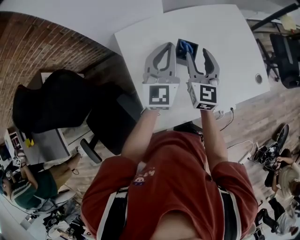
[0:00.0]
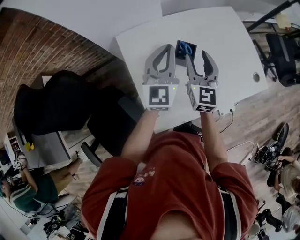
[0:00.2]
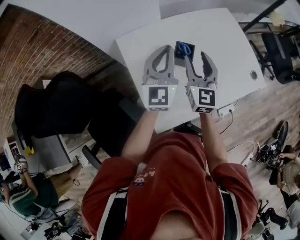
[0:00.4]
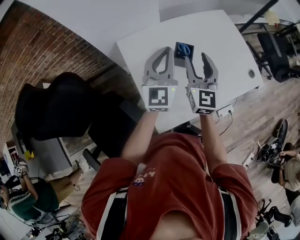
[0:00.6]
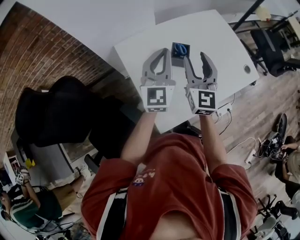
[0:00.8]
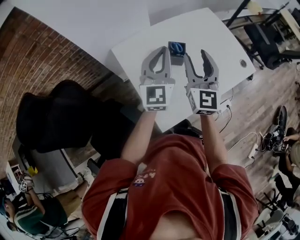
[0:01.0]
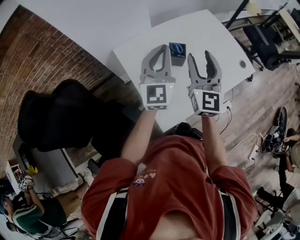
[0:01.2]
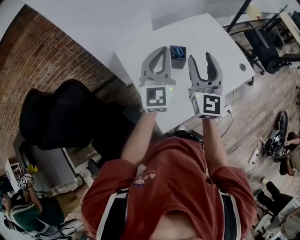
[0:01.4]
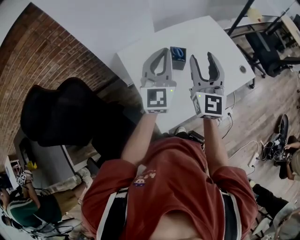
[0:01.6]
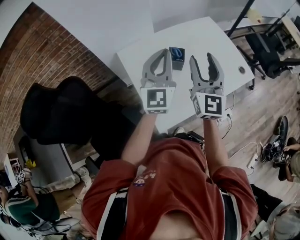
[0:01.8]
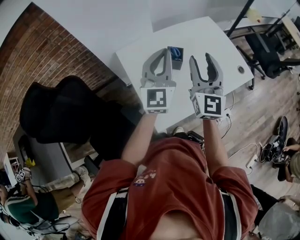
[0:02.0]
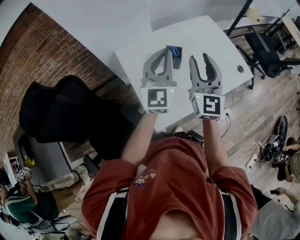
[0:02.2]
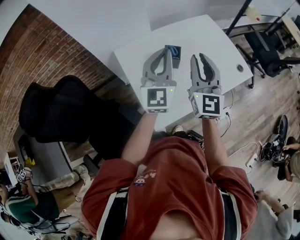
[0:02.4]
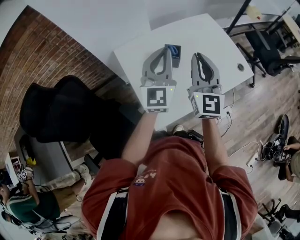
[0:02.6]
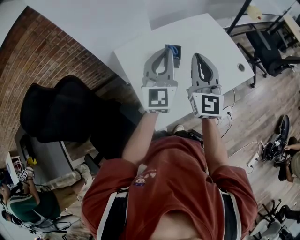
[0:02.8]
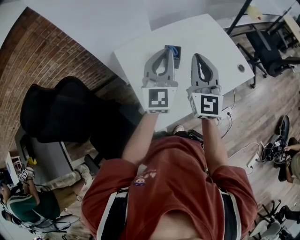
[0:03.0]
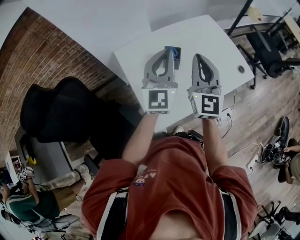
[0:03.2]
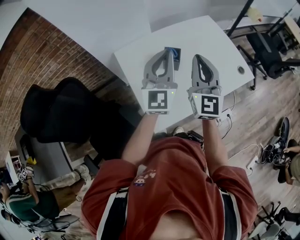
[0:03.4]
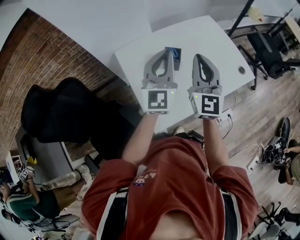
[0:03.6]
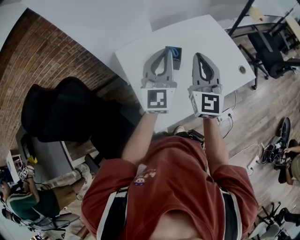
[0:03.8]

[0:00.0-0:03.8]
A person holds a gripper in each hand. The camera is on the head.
0.0 to 1.2 s: The right gripper travels upward and backward by approximately 15 cm, while the left gripper heads upward and backward, covering roughly 10 cm.
1.2 to 2.6 s: The right gripper closes its fingers. The left gripper shifts by roughly 5 cm.
2.6 to 3.8 s: There are only small adjustments of the grippers.

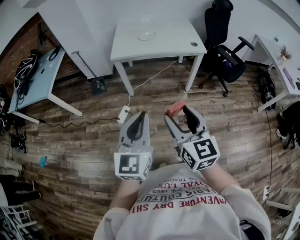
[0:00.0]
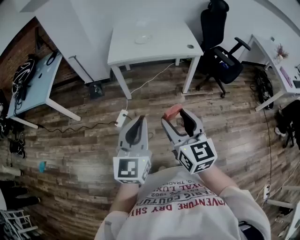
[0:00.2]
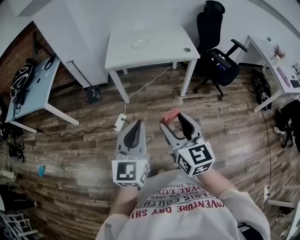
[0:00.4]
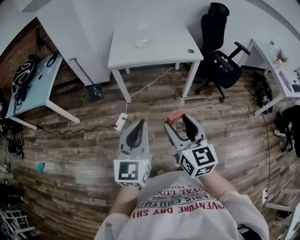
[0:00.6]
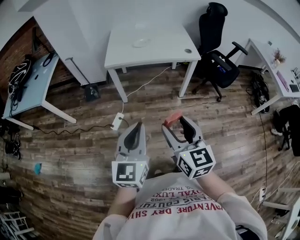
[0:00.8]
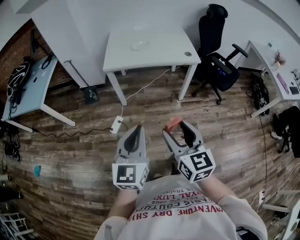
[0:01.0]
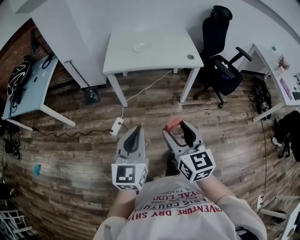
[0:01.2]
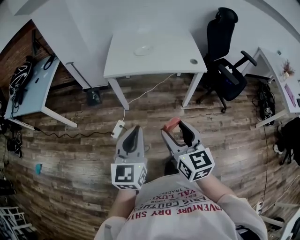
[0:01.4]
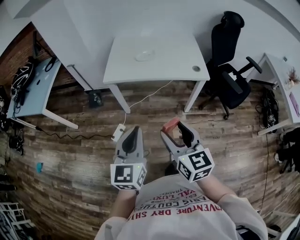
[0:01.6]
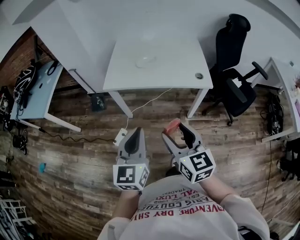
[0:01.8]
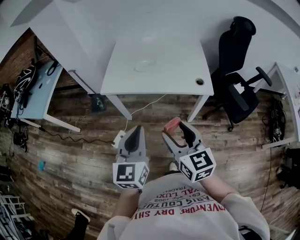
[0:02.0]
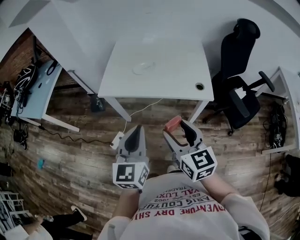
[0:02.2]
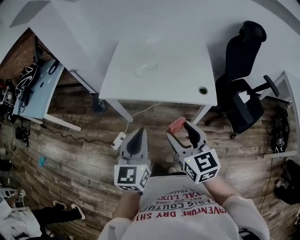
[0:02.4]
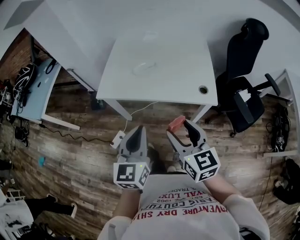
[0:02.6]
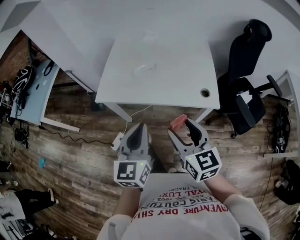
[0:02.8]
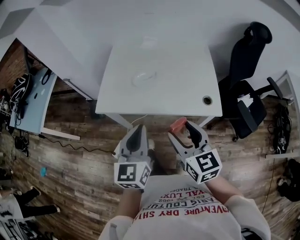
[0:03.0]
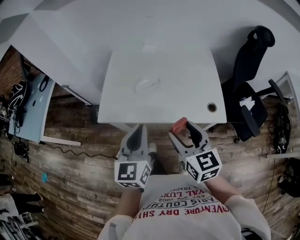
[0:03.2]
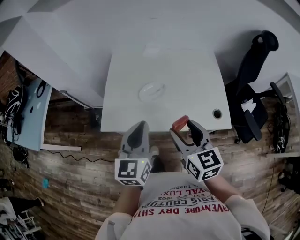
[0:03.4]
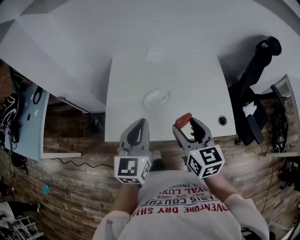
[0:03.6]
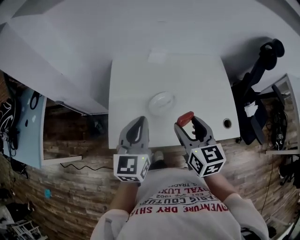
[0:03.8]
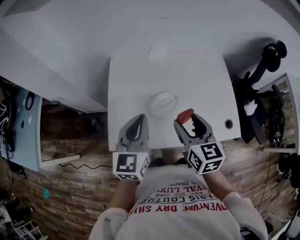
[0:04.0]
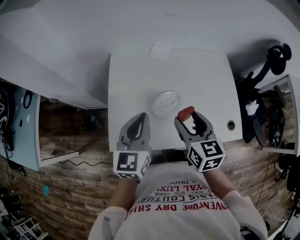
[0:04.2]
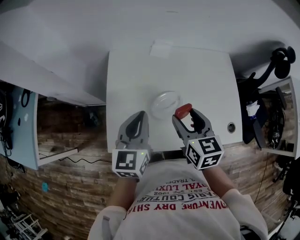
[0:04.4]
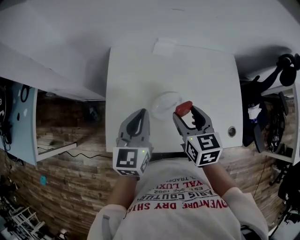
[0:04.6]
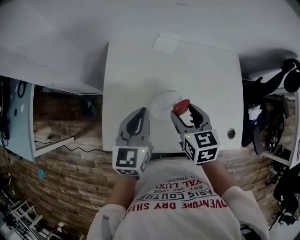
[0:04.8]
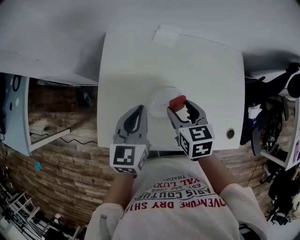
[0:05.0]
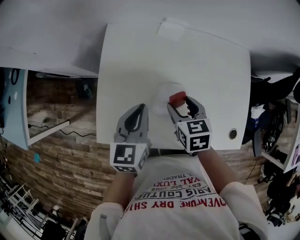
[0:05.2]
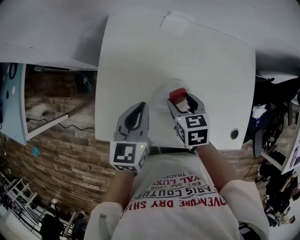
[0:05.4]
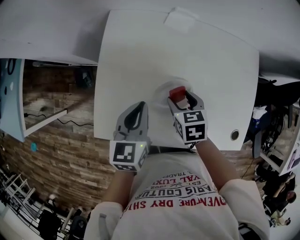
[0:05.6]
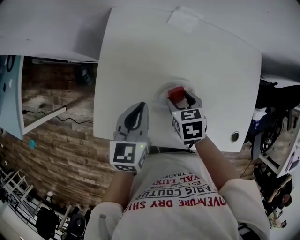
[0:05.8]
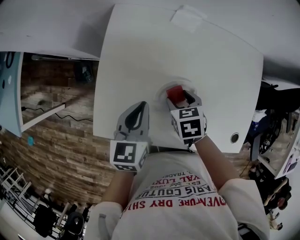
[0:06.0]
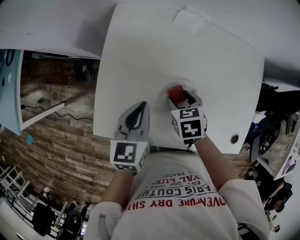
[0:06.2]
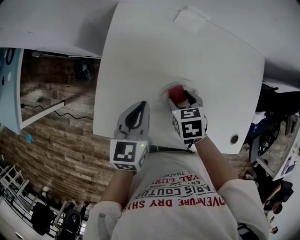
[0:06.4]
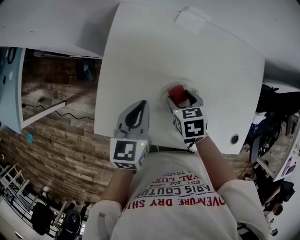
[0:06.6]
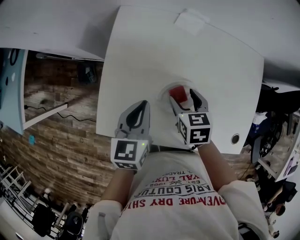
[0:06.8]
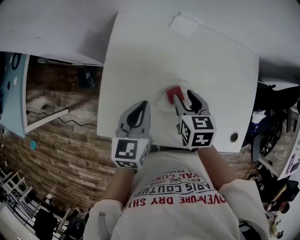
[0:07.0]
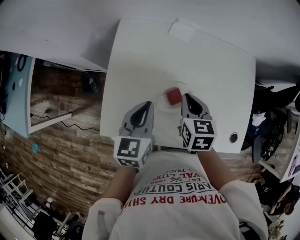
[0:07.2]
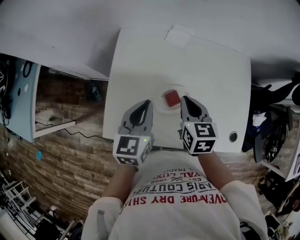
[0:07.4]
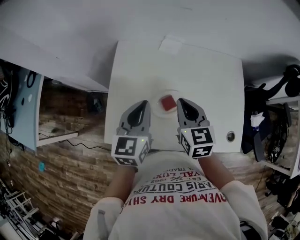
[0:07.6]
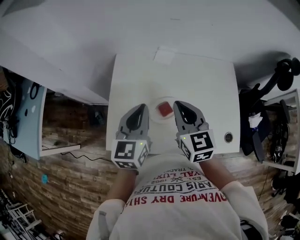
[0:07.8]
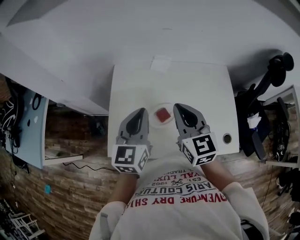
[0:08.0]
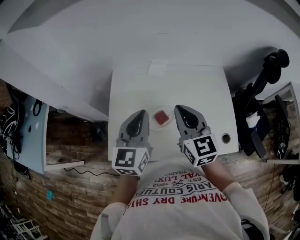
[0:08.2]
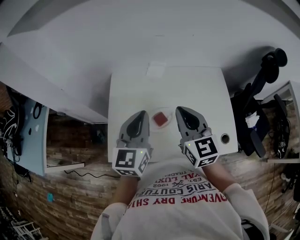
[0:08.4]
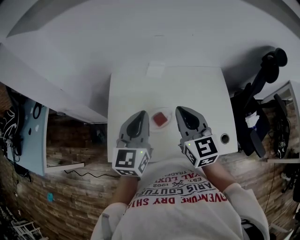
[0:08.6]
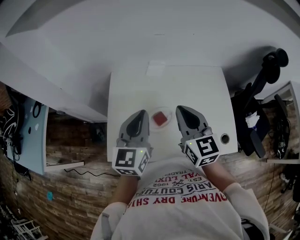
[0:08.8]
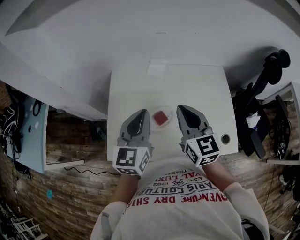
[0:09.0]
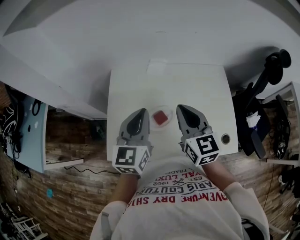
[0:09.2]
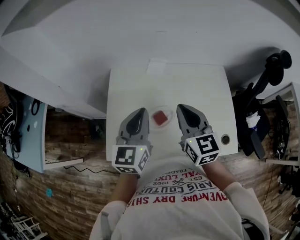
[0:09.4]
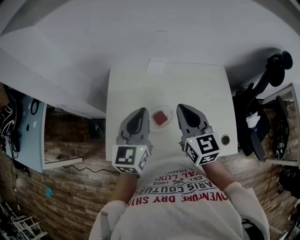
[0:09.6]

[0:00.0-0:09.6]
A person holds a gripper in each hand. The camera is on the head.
0.0 to 1.6 s: Both grippers travel together forward, some 20 cm.
1.6 to 3.2 s: The grippers both shift forward by approximately 35 cm.
3.2 to 4.8 s: Both grippers travel together forward, some 30 cm. The right gripper changes its angle by approximately 20 degrees.
4.8 to 6.4 s: The left gripper heads downward, covering some 10 cm. Meanwhile the right gripper travels downward by approximately 15 cm, and swivels some 30 degrees.
6.4 to 8.0 s: The right gripper heads upward, covering some 30 cm, angles its fingers upward, by about 50 degrees, and closes. The left gripper is displaced upward by approximately 20 cm, and swivels approximately 30 degrees.
8.0 to 9.6 s: The grippers stay close to where they were, moving slightly.

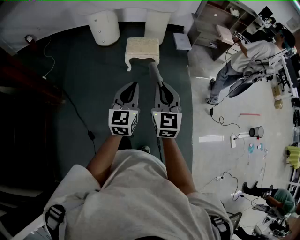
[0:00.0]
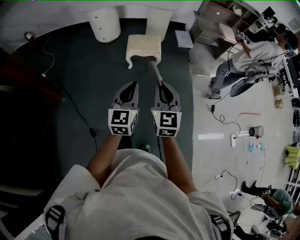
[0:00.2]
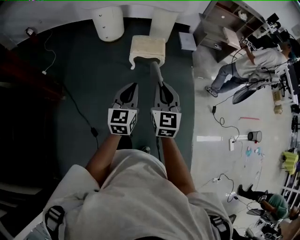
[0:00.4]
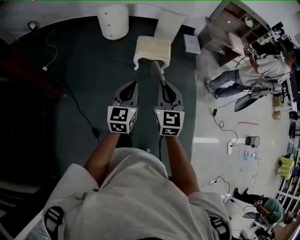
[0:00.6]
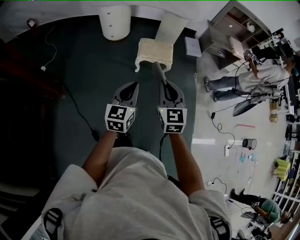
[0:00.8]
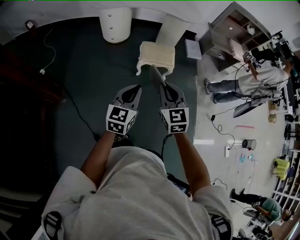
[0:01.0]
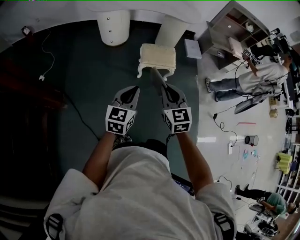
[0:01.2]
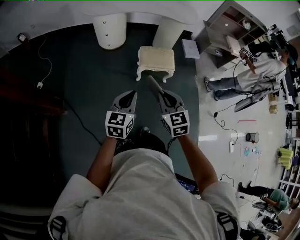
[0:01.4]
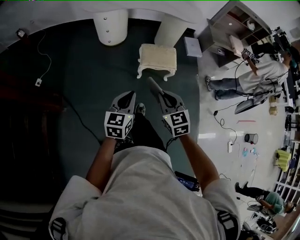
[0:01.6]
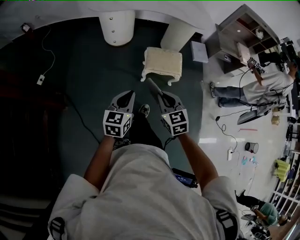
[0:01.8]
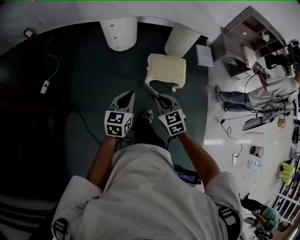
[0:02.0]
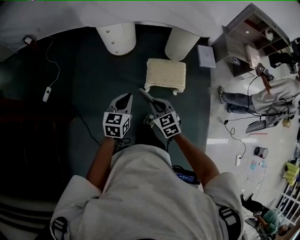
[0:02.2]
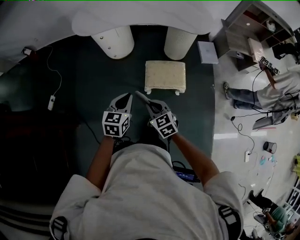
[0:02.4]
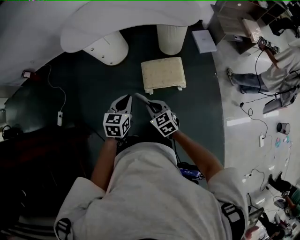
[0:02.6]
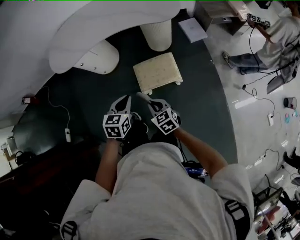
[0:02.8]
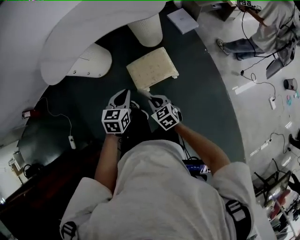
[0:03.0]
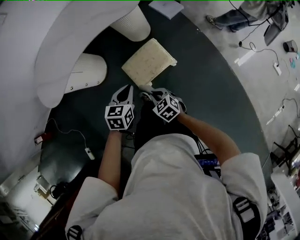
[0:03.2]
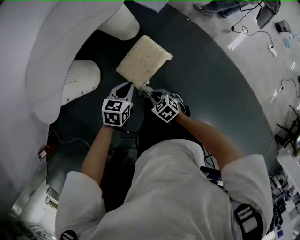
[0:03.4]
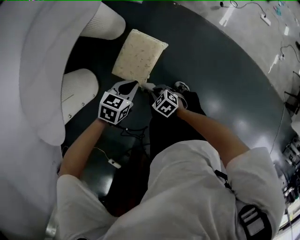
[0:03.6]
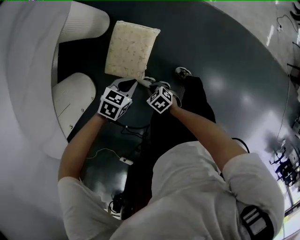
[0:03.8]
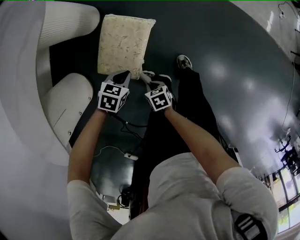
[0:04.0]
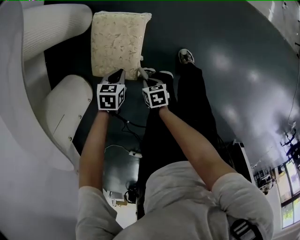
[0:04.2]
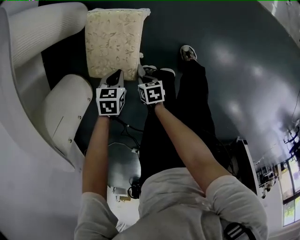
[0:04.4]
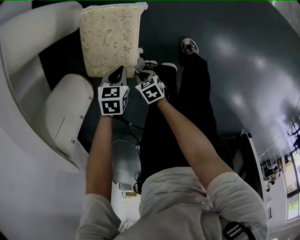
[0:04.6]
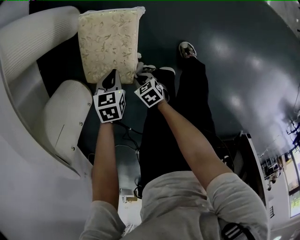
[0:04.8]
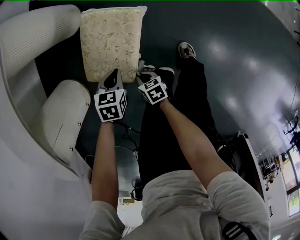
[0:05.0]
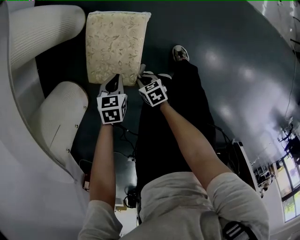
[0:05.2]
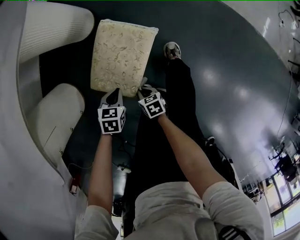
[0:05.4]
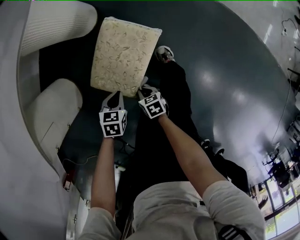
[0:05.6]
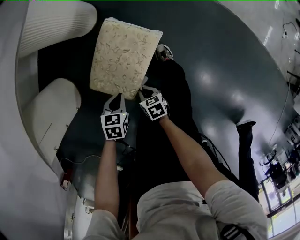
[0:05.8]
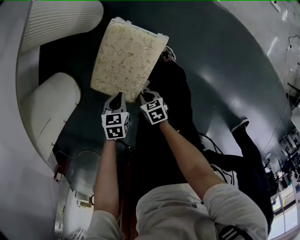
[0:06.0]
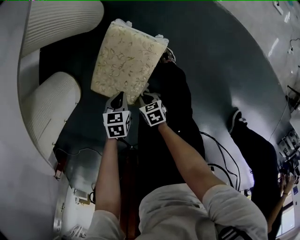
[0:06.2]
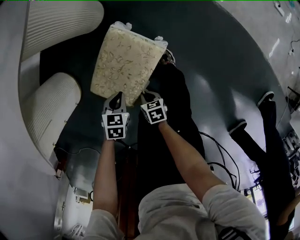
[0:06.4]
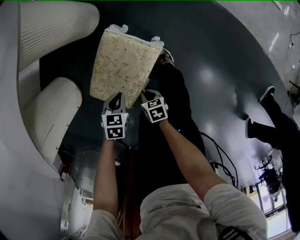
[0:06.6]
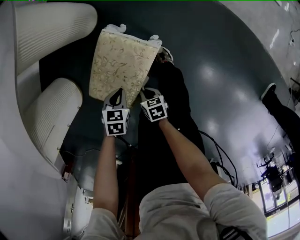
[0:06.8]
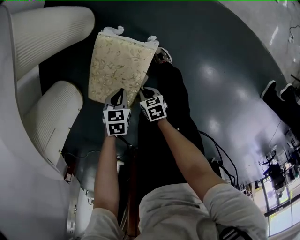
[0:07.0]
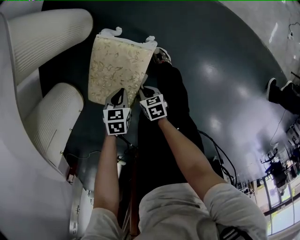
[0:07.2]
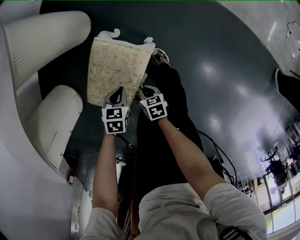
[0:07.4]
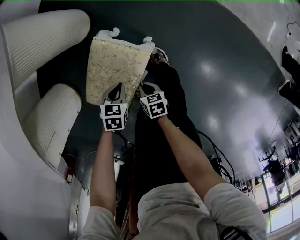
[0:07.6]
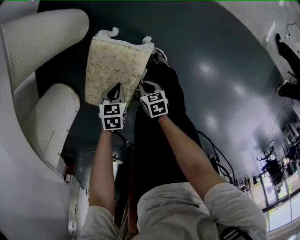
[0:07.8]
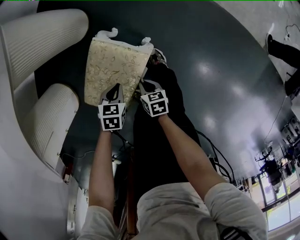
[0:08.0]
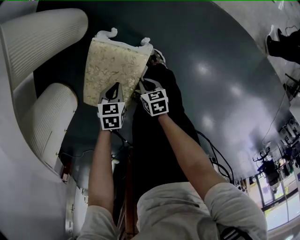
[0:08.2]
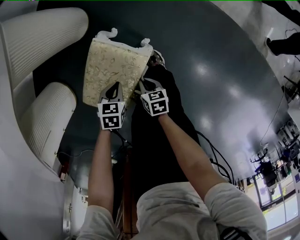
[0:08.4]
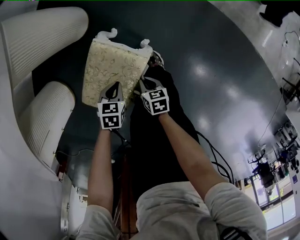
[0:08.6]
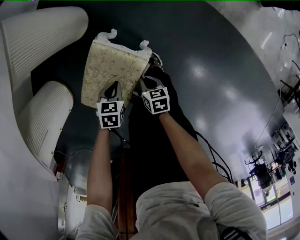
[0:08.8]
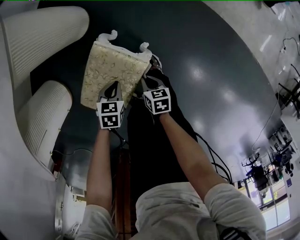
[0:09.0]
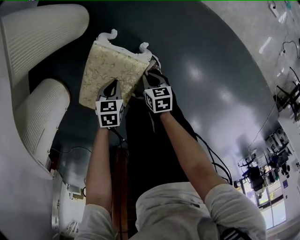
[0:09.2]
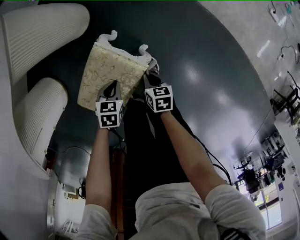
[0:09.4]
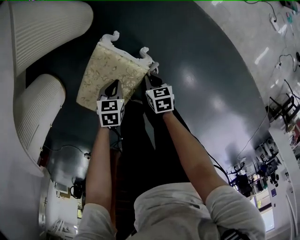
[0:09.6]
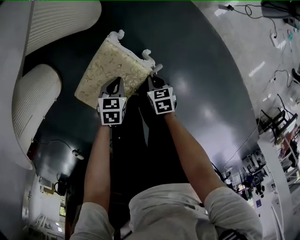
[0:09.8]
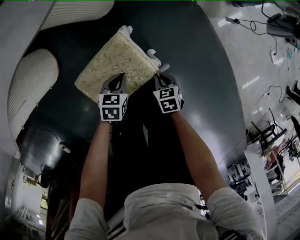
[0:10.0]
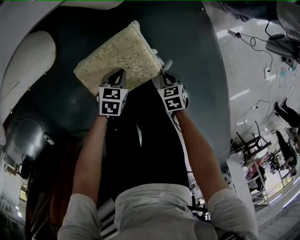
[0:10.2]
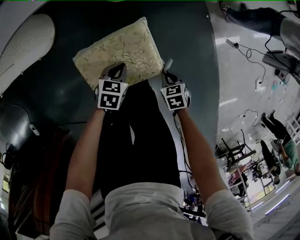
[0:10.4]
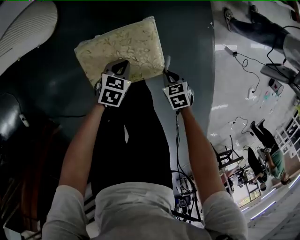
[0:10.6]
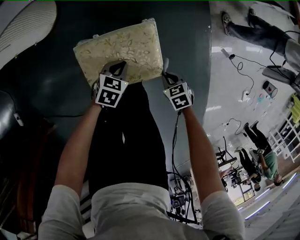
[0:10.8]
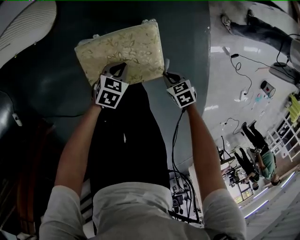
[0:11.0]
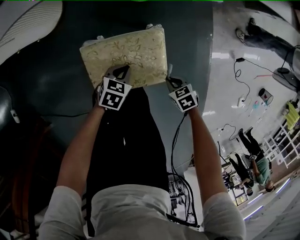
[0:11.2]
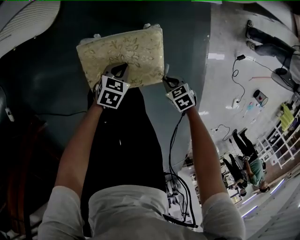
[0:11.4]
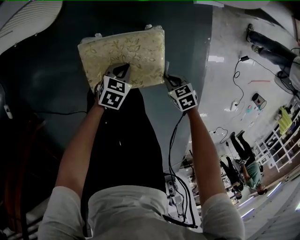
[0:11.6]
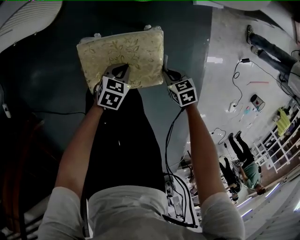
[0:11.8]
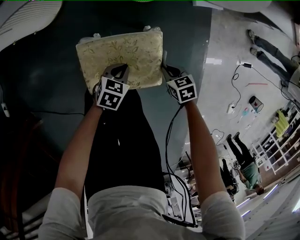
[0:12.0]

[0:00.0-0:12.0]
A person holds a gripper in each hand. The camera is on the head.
0.0 to 1.6 s: The right gripper moves forward, to the left and downward, approximately 35 cm, and turns by about 30 degrees; the left gripper heads to the left, forward and downward, covering about 35 cm.
1.6 to 3.0 s: The right gripper heads forward and downward, covering roughly 30 cm, and swivels approximately 20 degrees. Meanwhile the left gripper goes approximately 40 cm forward and to the right, and changes its angle by about 30 degrees.
3.0 to 4.4 s: Both grippers travel together downward, approximately 40 cm. The left gripper turns by some 70 degrees, while the right gripper rolls clockwise, seen from behind, by approximately 90 degrees.
4.4 to 6.0 s: The right gripper shifts by some 5 cm, and changes its angle by some 30 degrees, while the left gripper swivels some 20 degrees.
6.0 to 7.6 s: The grippers both shift to the right and forward by approximately 10 cm.
7.6 to 9.0 s: The right gripper moves forward and to the right, about 10 cm.
9.0 to 10.4 s: The right gripper changes place by some 5 cm, and rolls counterclockwise, seen from behind, by approximately 60 degrees. Meanwhile the left gripper changes place by some 5 cm, and swivels about 30 degrees.
10.4 to 12.0 s: The right gripper moves approximately 10 cm, and rotates about 20 degrees.
